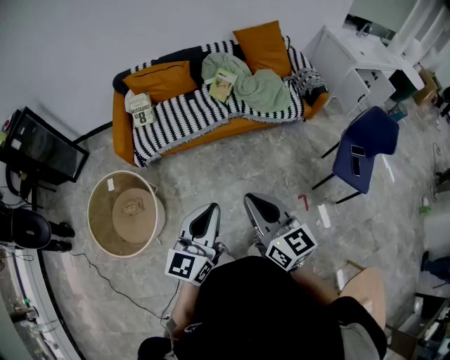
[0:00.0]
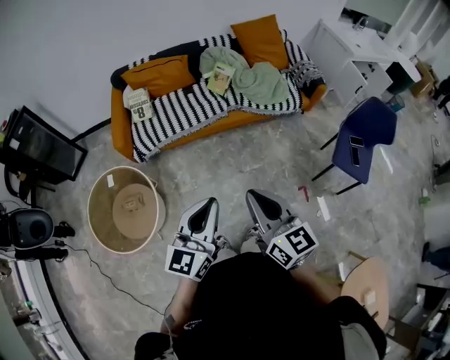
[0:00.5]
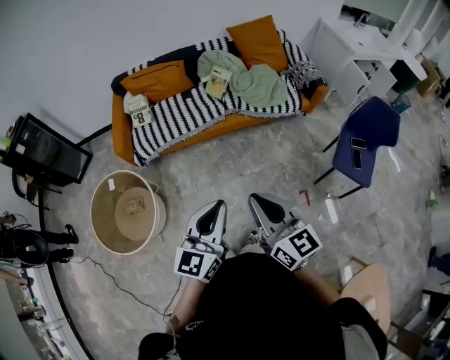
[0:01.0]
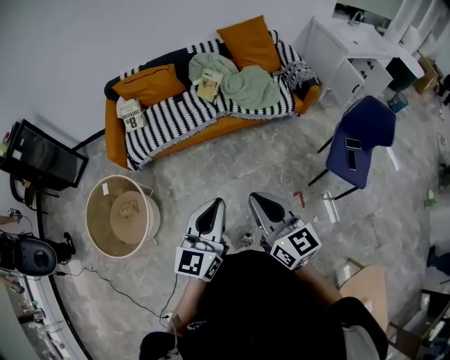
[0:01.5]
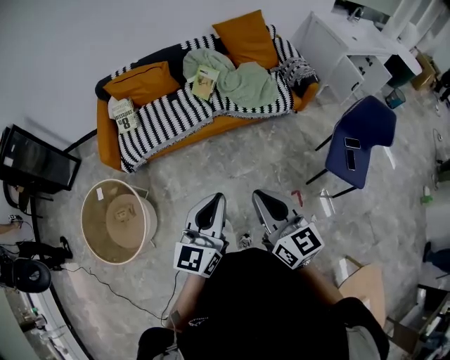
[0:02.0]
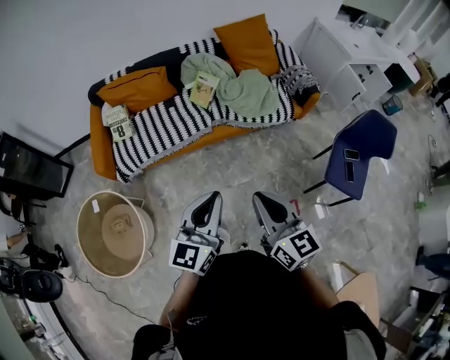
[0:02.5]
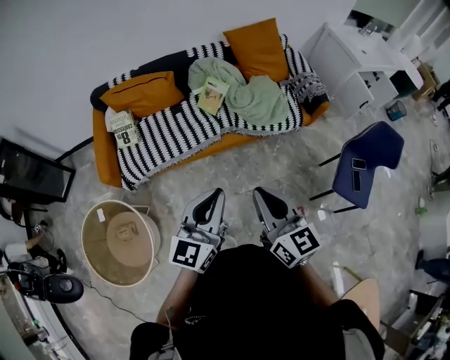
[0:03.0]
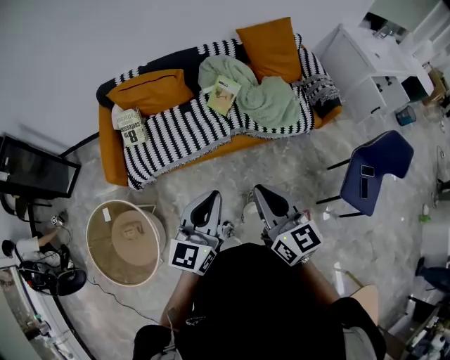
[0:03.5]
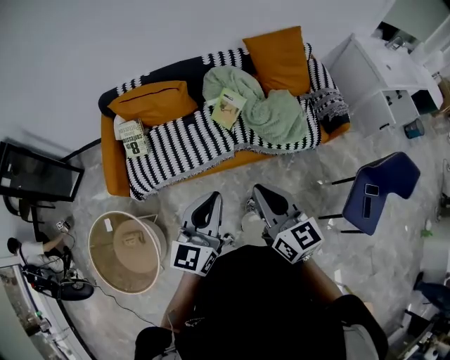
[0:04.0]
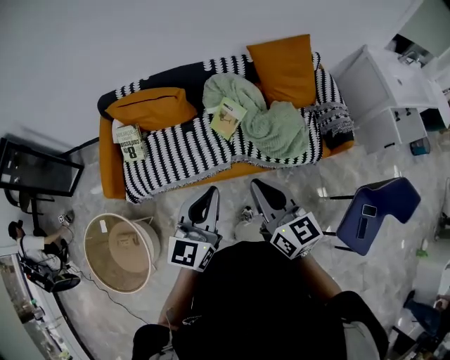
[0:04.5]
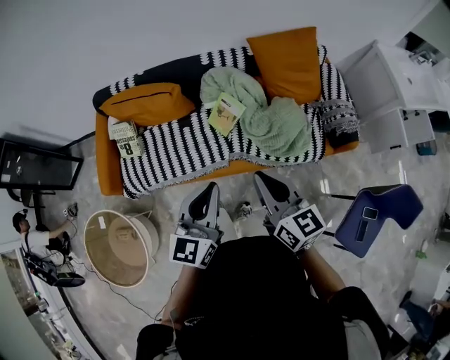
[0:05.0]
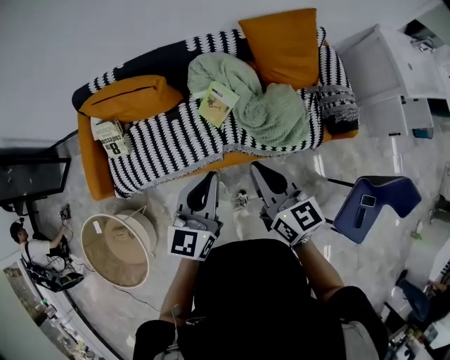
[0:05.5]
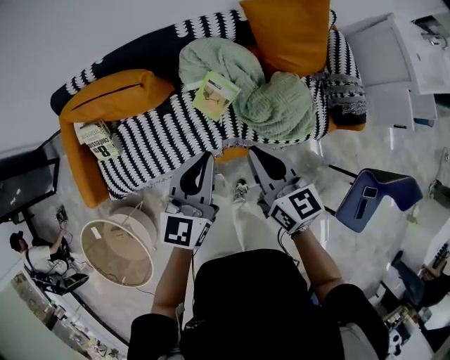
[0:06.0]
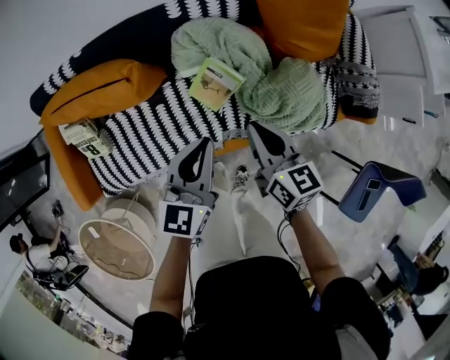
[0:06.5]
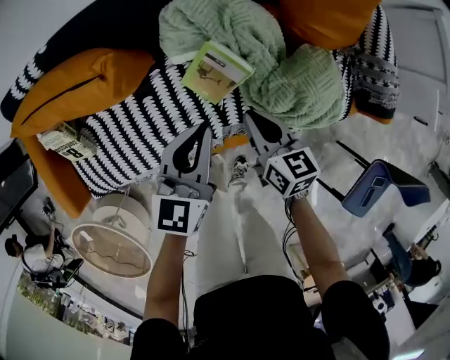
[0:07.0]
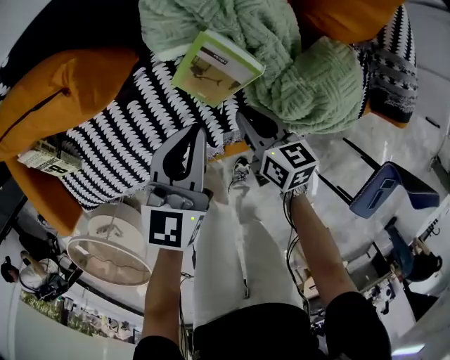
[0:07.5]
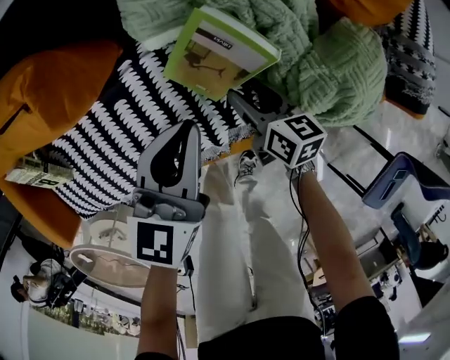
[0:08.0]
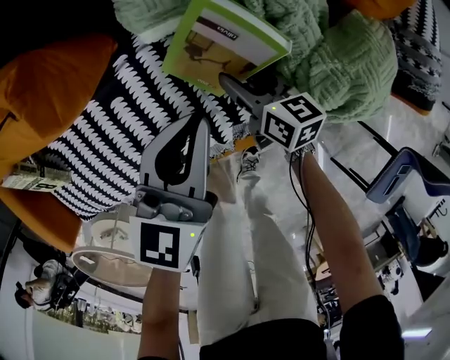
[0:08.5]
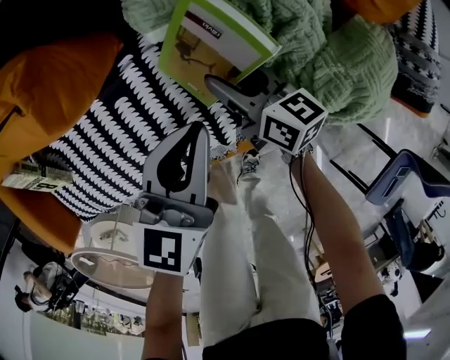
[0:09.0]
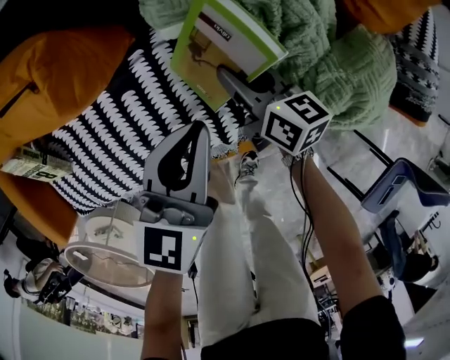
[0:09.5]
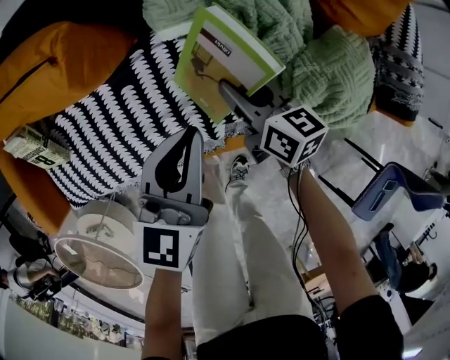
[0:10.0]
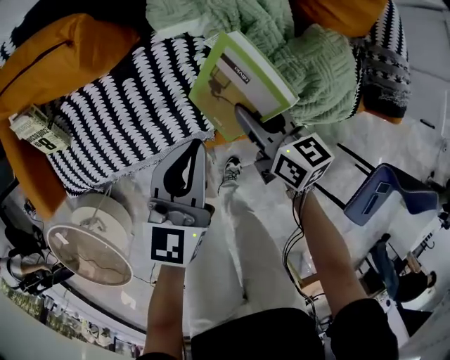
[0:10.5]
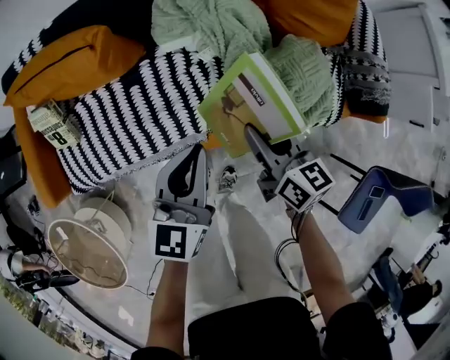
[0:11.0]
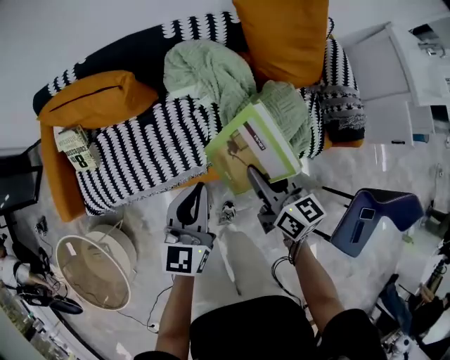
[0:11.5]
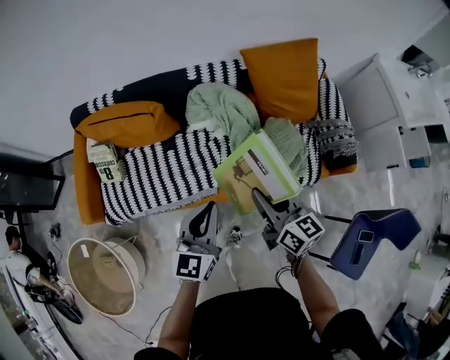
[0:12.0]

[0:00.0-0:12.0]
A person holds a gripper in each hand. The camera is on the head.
0:00.0 to 0:02.0: The left gripper heads to the right and forward, covering about 15 cm; the right gripper shifts approximately 10 cm to the right.
0:02.0 to 0:04.0: Both grippers move forward, approximately 35 cm.
0:04.0 to 0:06.0: The grippers both shift forward by about 35 cm.
0:06.0 to 0:08.0: The right gripper moves downward, about 50 cm, rotates approximately 30 degrees, and opens. The left gripper travels downward and forward by approximately 40 cm.
0:08.0 to 0:10.0: The right gripper goes approximately 10 cm upward. The left gripper shifts by roughly 5 cm.
0:10.0 to 0:12.0: Both grippers move upward and backward, about 40 cm. The right gripper changes its angle by approximately 20 degrees.

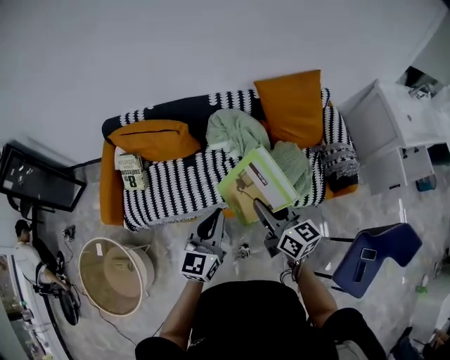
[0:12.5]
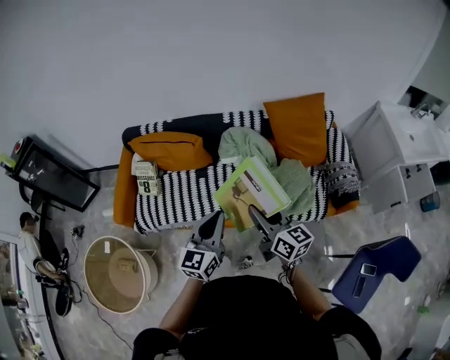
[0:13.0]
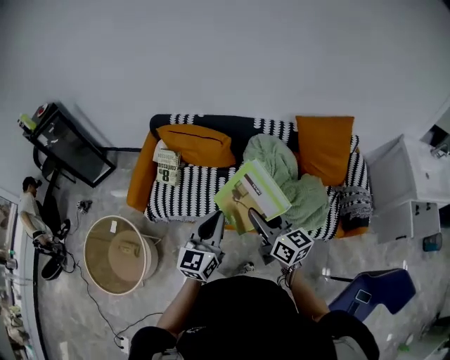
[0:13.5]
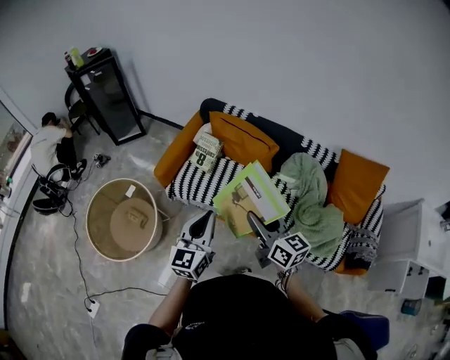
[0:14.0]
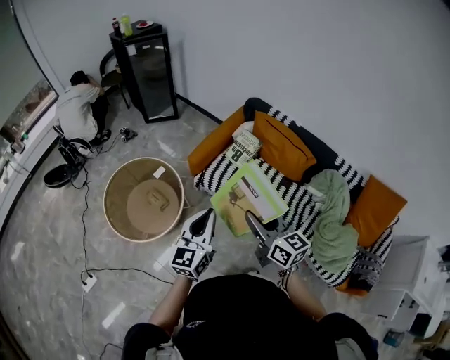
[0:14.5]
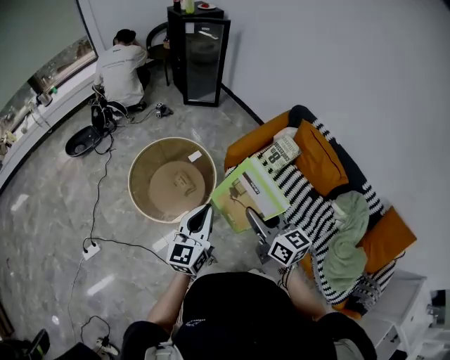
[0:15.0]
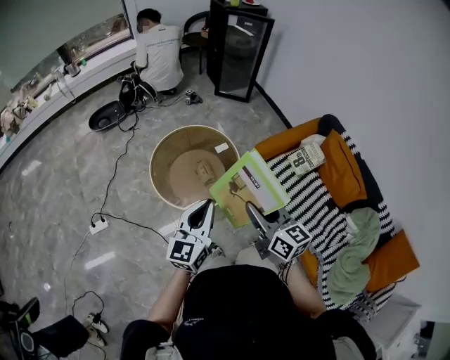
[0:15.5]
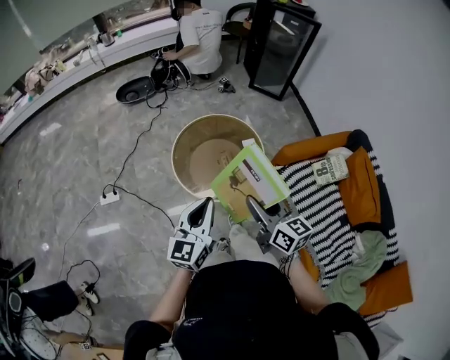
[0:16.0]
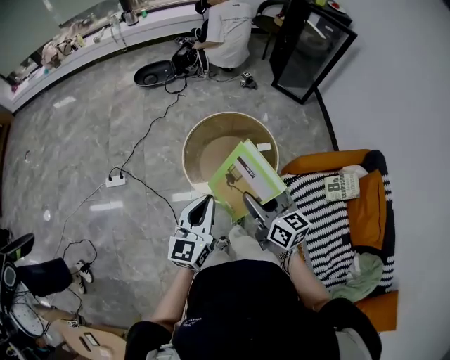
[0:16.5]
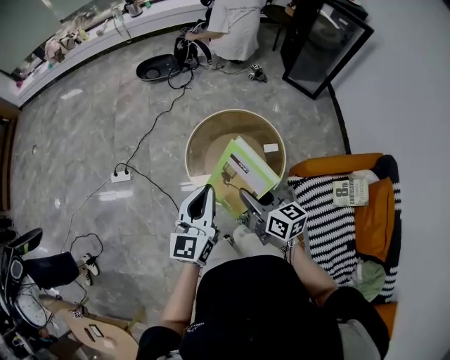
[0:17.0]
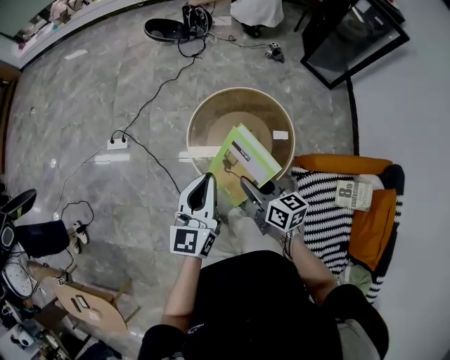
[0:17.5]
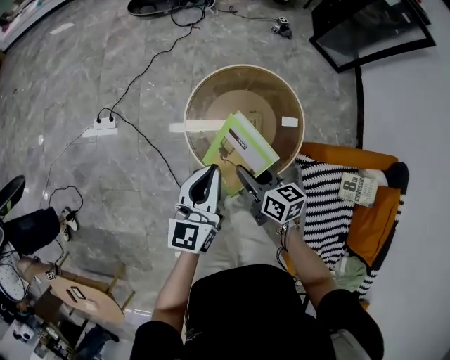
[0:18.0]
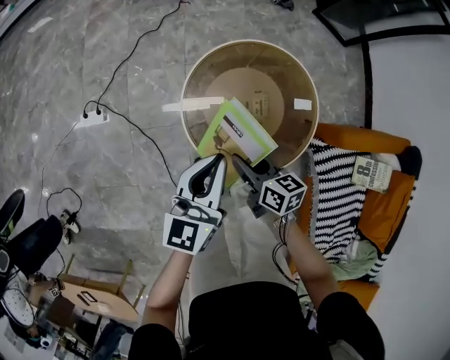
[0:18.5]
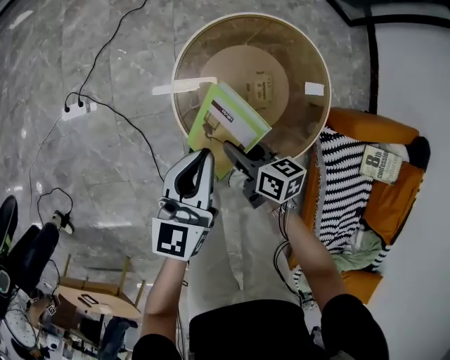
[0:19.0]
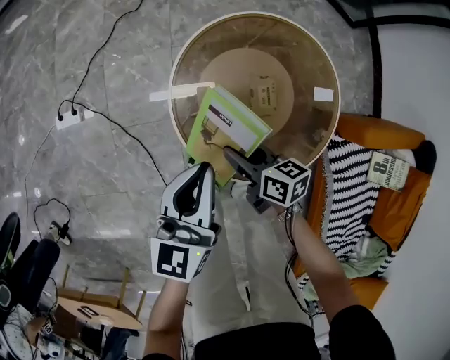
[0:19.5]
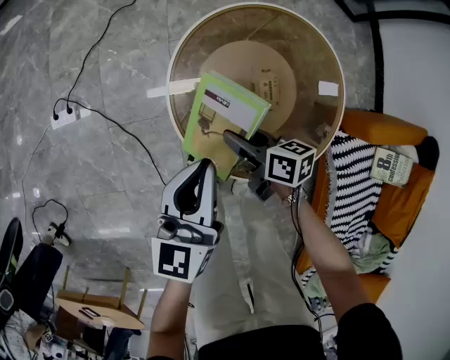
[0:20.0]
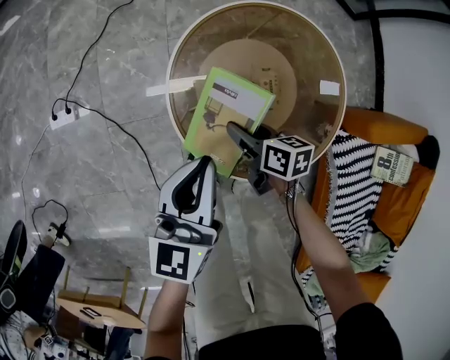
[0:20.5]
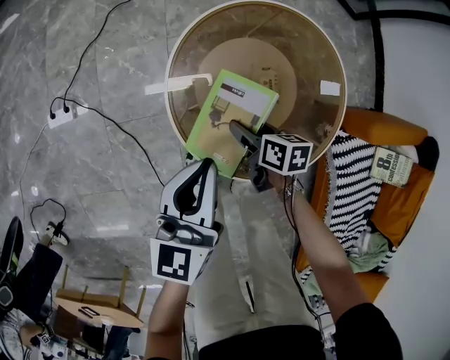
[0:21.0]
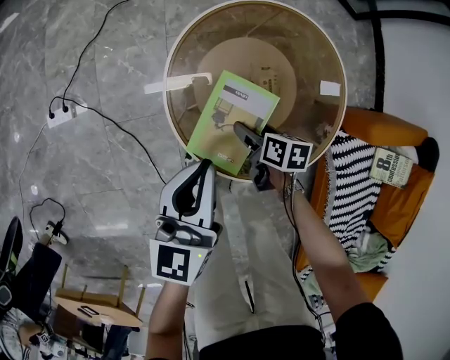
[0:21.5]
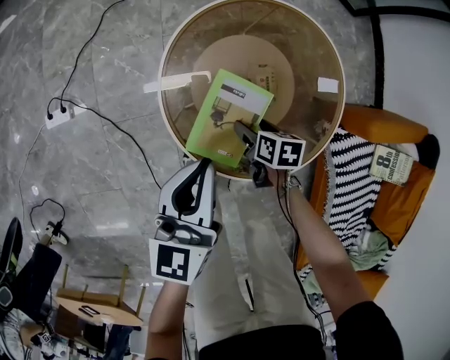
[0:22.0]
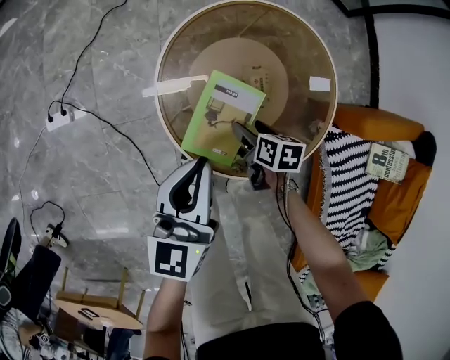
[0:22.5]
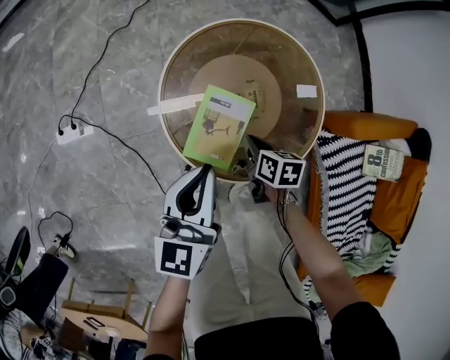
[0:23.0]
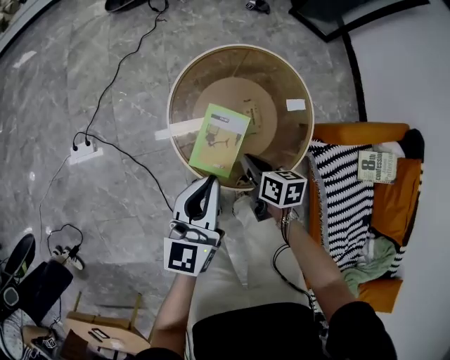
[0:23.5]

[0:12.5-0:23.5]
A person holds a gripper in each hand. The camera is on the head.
0:12.5 to 0:14.5: The pair of grippers is taken approximately 40 cm. The left gripper rotates approximately 40 degrees. The right gripper rotates about 50 degrees.
0:14.5 to 0:16.0: The left gripper moves some 30 cm, and changes its angle by some 40 degrees, while the right gripper shifts by about 35 cm, and turns by roughly 30 degrees.
0:16.0 to 0:18.0: Both grippers travel together forward and downward, approximately 30 cm. The right gripper rotates roughly 30 degrees; the left gripper rotates approximately 20 degrees.
0:18.0 to 0:20.0: Both grippers travel together downward, roughly 25 cm.
0:20.0 to 0:21.5: The right gripper moves downward and to the right, about 10 cm, changes its angle by roughly 20 degrees, and opens.
0:21.5 to 0:23.5: The right gripper shifts about 15 cm upward, and closes its fingers. The left gripper goes approximately 10 cm upward.

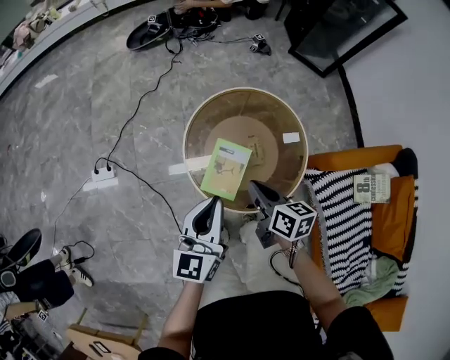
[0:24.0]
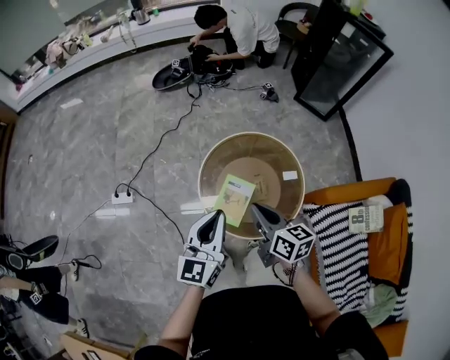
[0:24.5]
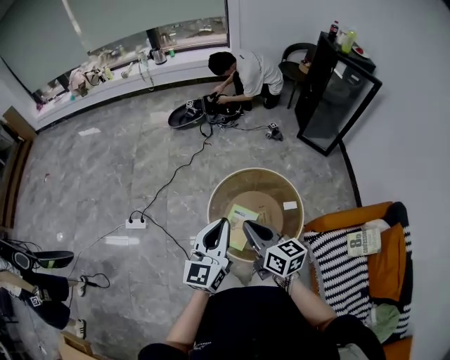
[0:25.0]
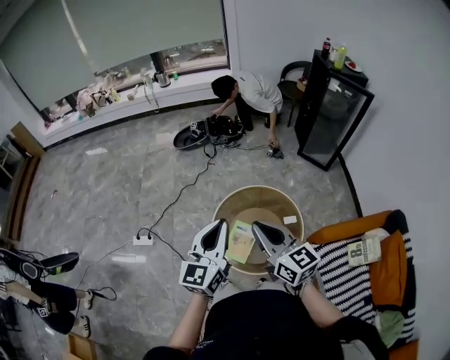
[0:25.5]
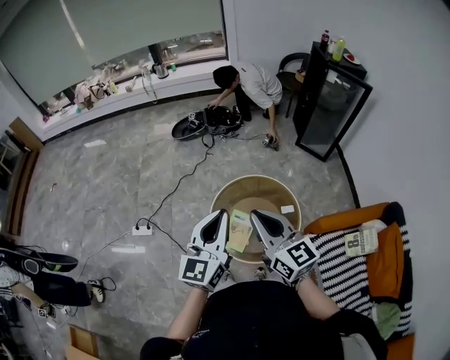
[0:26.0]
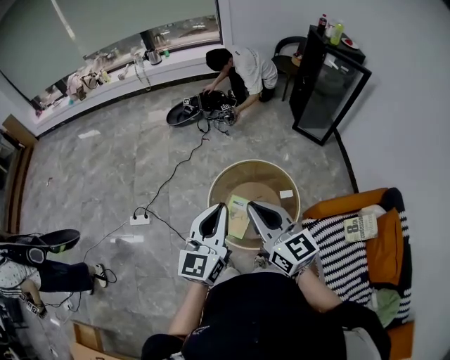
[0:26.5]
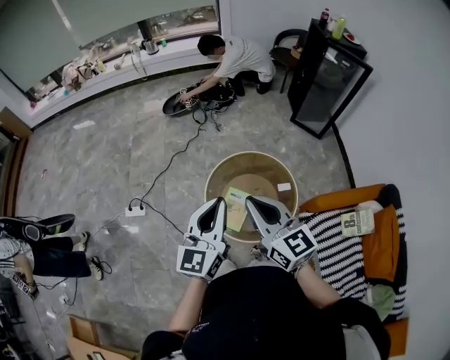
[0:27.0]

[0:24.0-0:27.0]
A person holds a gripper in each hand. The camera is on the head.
0:24.0 to 0:25.5: The grippers both shift upward by some 30 cm. The right gripper changes its angle by roughly 40 degrees.
0:25.5 to 0:27.0: The grippers move only a little.

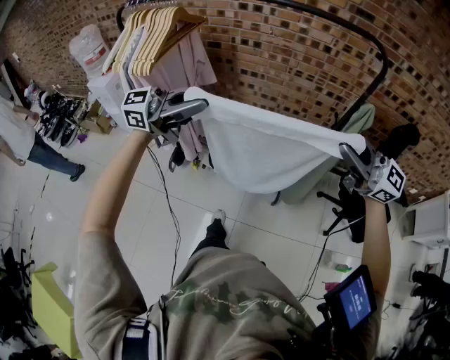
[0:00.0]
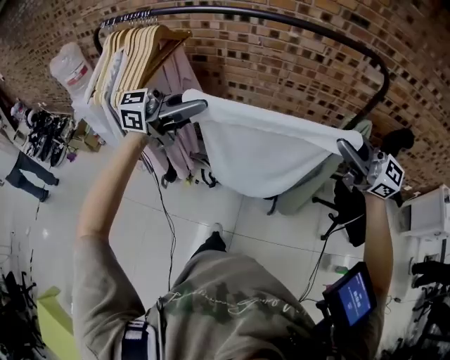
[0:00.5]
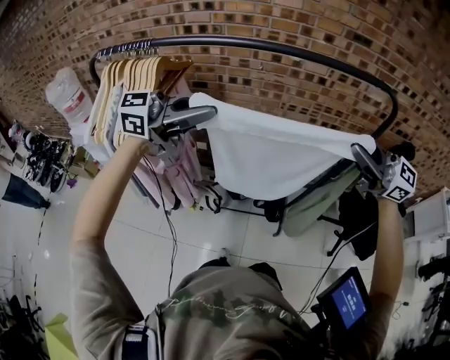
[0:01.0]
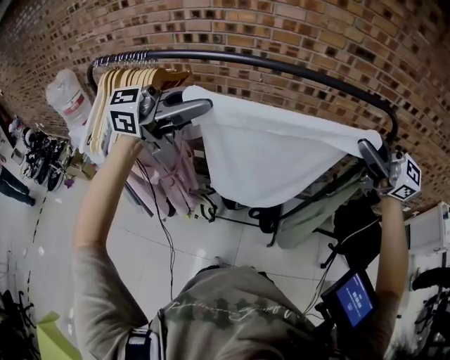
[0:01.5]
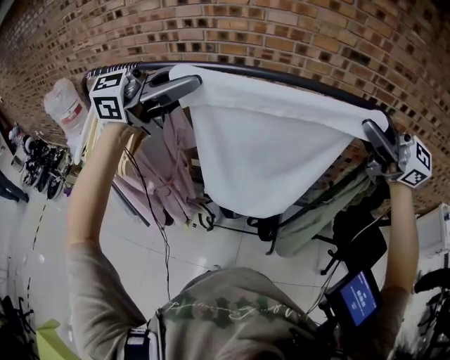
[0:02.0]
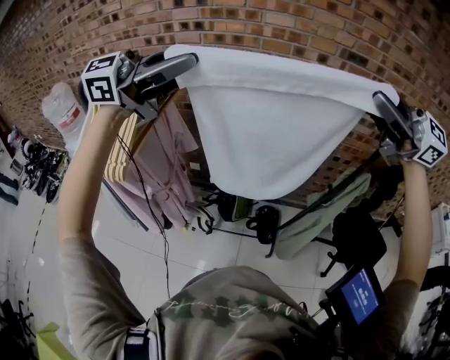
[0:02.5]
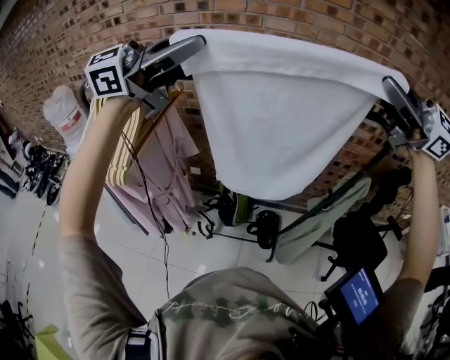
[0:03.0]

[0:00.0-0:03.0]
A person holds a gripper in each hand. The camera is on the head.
0:00.0 to 0:01.5: The right gripper shifts by some 20 cm, while the left gripper ends up some 20 cm from where it was.
0:01.5 to 0:03.0: The two grippers go roughly 15 cm upward.
